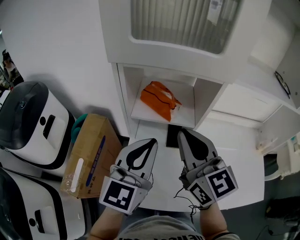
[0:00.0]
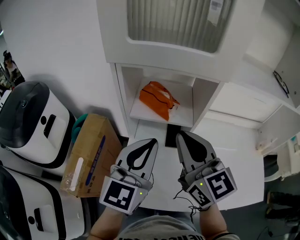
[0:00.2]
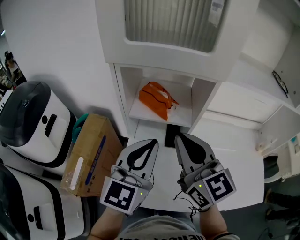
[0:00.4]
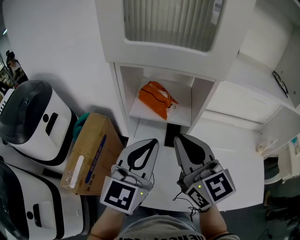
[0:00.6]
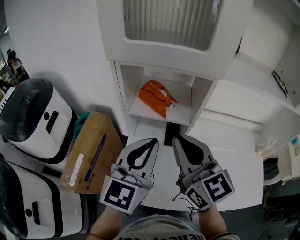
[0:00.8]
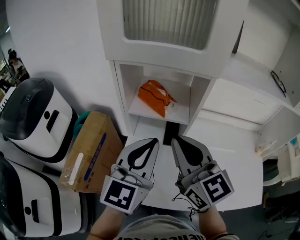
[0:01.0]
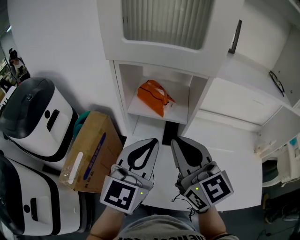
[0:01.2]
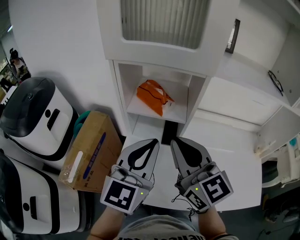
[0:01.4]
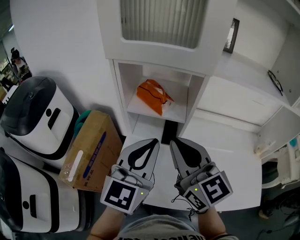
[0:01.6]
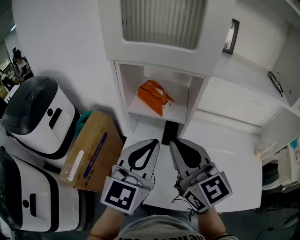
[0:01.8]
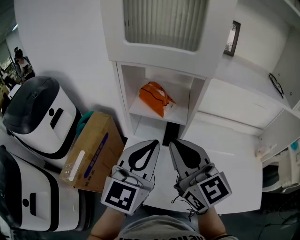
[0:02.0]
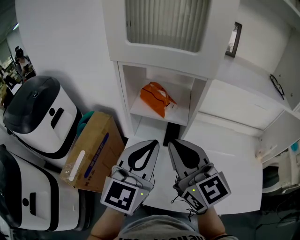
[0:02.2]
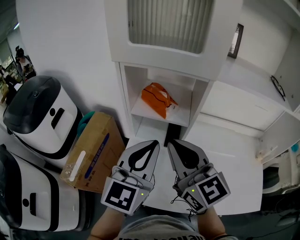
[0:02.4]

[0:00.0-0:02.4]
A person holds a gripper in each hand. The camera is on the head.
0:00.0 to 0:01.2: The left gripper moves some 5 cm. Meanwhile the right gripper ends up some 5 cm from where it was.
0:01.2 to 0:02.4: There are only small adjustments of the grippers.

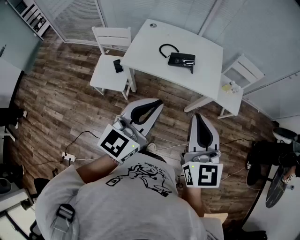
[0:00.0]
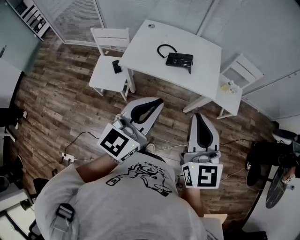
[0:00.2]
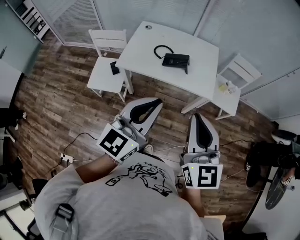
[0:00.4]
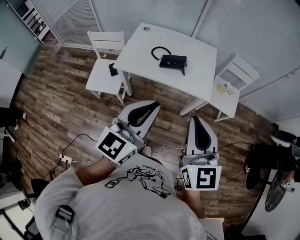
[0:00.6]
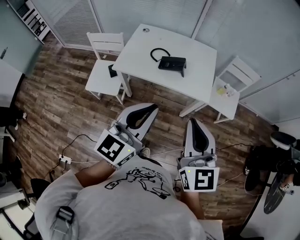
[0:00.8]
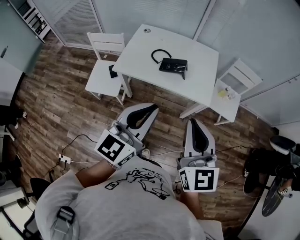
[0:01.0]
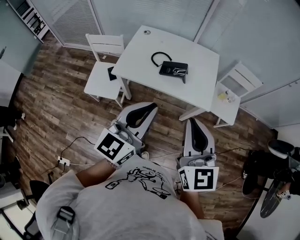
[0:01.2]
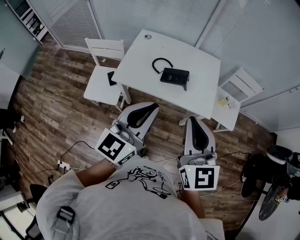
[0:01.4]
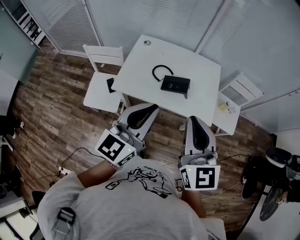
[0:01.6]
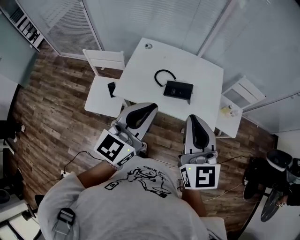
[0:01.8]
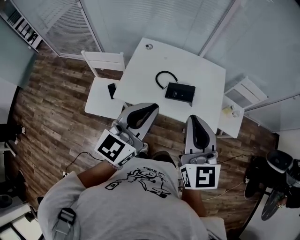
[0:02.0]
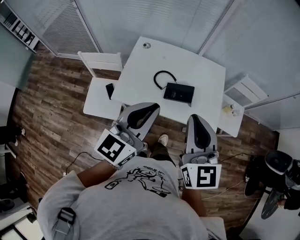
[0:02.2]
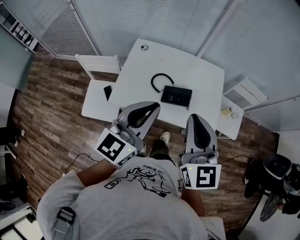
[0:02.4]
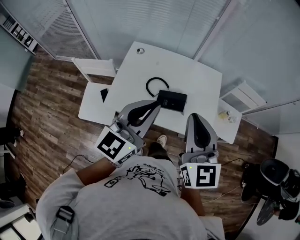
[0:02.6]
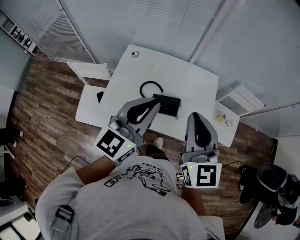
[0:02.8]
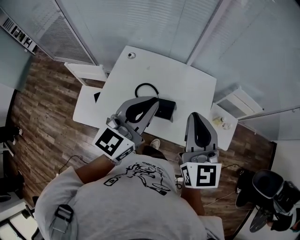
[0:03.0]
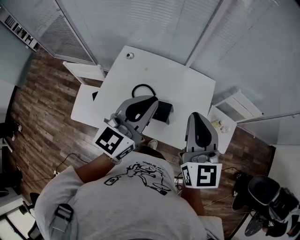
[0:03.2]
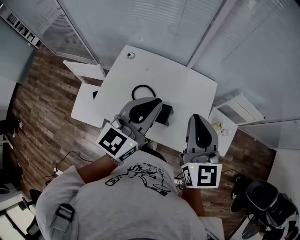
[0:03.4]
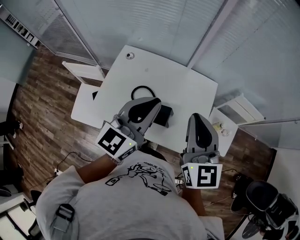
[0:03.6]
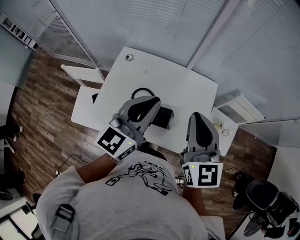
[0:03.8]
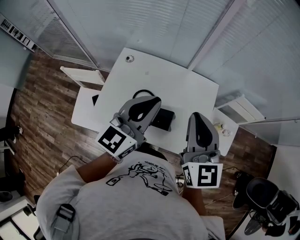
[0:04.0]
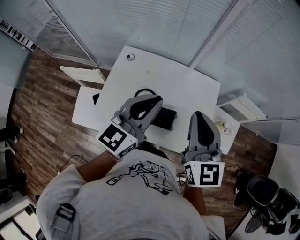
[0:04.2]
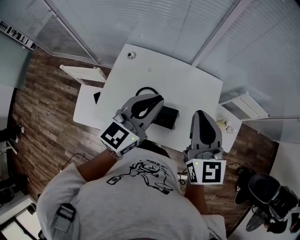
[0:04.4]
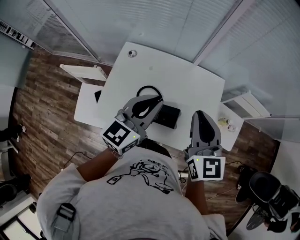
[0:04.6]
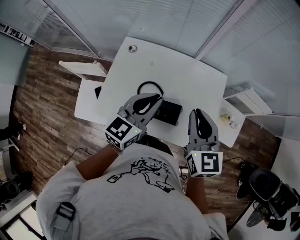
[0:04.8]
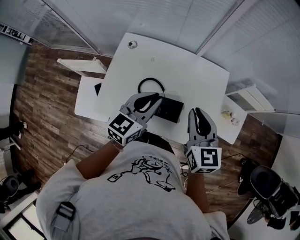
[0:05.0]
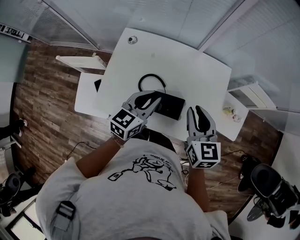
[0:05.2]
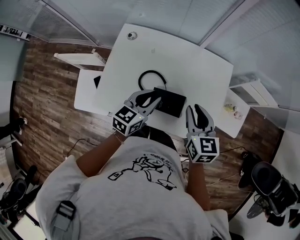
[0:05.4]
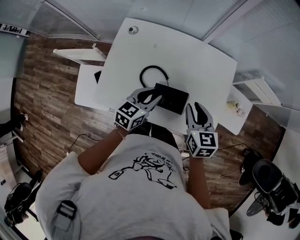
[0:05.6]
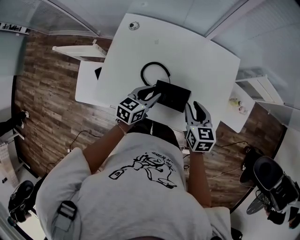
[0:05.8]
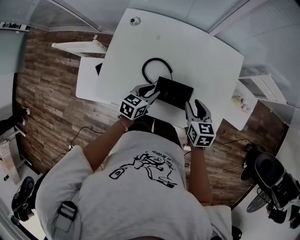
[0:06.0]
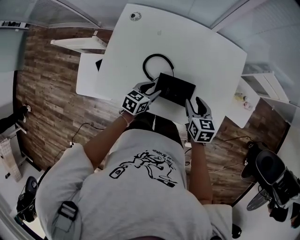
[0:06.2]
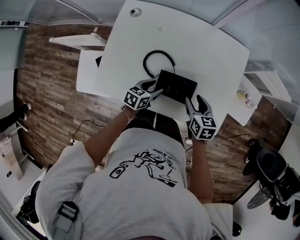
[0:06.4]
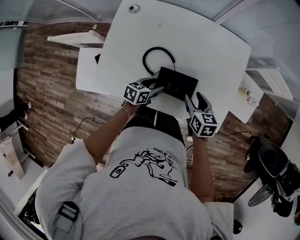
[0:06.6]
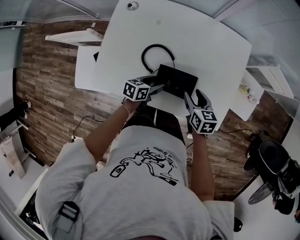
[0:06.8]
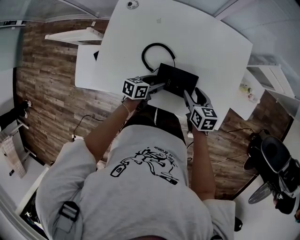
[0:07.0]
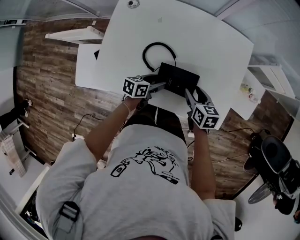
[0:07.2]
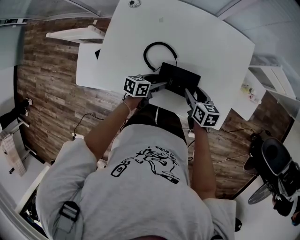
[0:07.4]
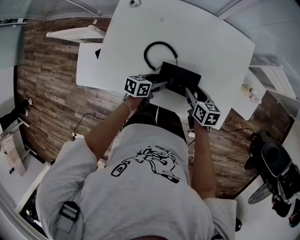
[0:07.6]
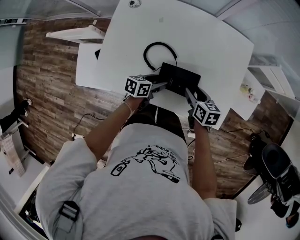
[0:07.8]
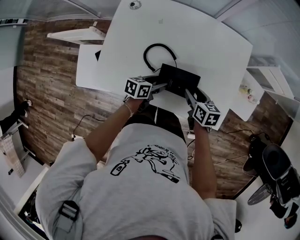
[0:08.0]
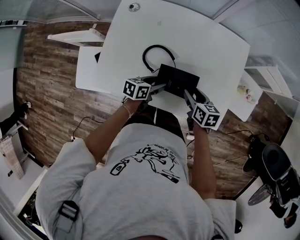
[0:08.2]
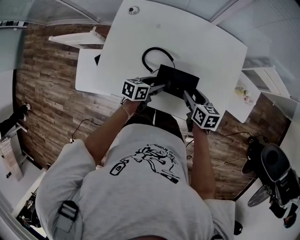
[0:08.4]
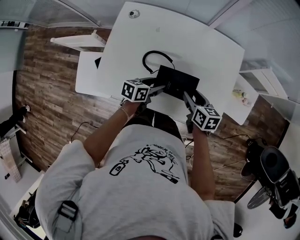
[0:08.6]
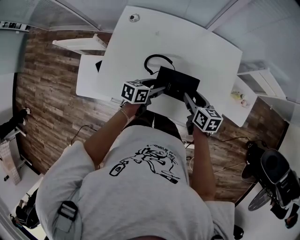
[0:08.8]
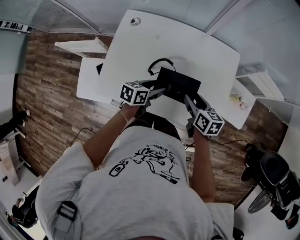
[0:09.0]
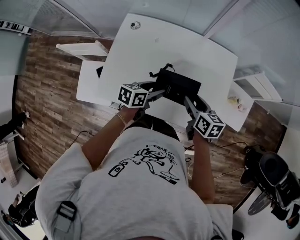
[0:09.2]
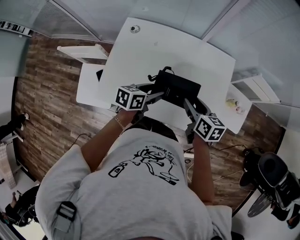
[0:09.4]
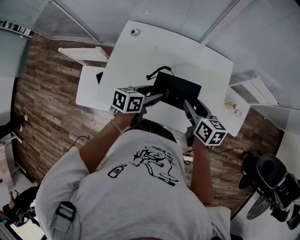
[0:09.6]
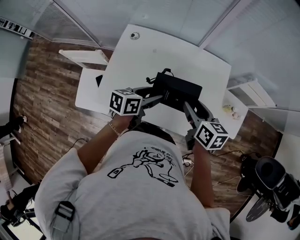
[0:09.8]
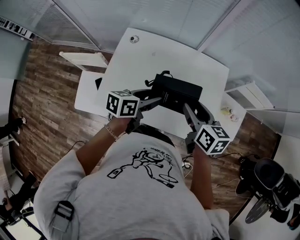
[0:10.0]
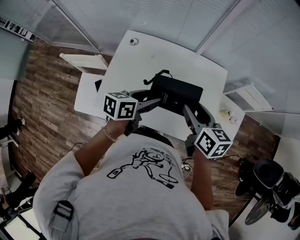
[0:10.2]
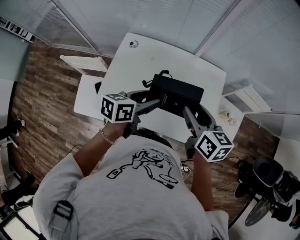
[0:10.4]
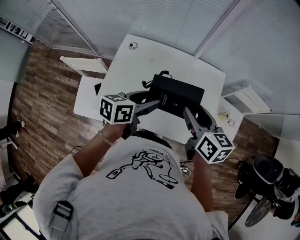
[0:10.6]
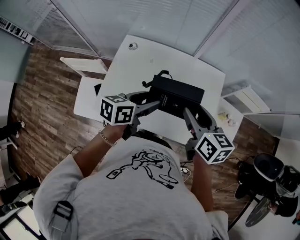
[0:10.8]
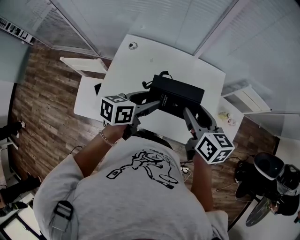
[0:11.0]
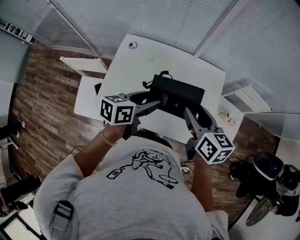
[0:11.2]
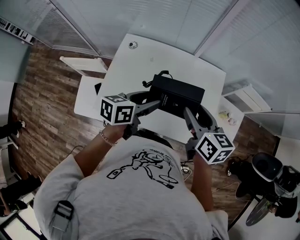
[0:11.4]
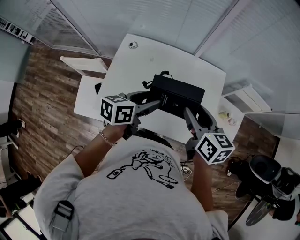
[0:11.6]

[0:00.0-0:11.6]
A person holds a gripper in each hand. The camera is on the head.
0:00.0 to 0:01.4: The two grippers go roughly 10 cm forward.
0:01.4 to 0:02.8: The two grippers go about 25 cm forward.
0:02.8 to 0:04.4: The two grippers go some 15 cm forward.
0:04.4 to 0:05.8: The grippers both shift downward by approximately 30 cm. The left gripper changes its angle by roughly 30 degrees, and opens its fingers. The right gripper tips its fingers downward by about 30 degrees.
0:05.8 to 0:07.2: Both grippers move downward, approximately 15 cm. The left gripper changes its angle by about 30 degrees, and opens its fingers; the right gripper opens up.
0:07.2 to 0:08.8: Both grippers travel together upward, roughly 5 cm.
0:08.8 to 0:10.2: Both grippers travel together upward, roughly 20 cm.
0:10.2 to 0:11.6: There are only small adjustments of the grippers.

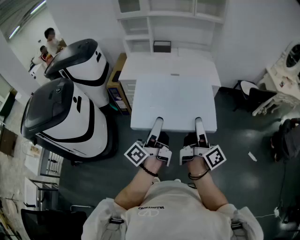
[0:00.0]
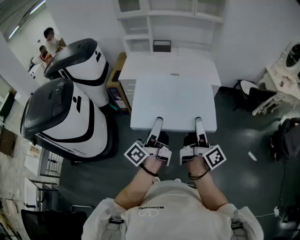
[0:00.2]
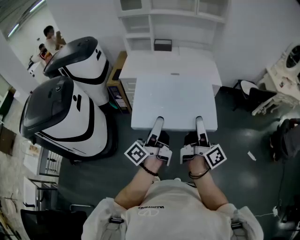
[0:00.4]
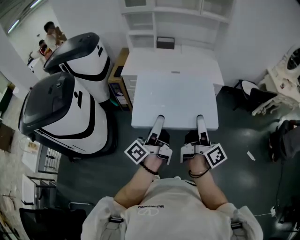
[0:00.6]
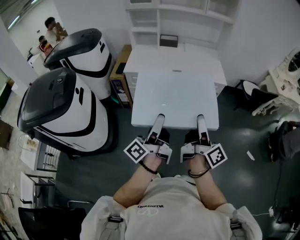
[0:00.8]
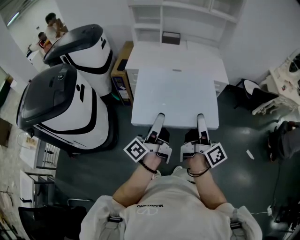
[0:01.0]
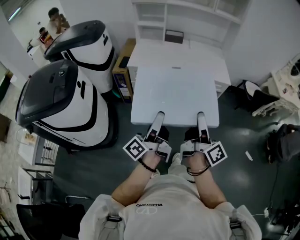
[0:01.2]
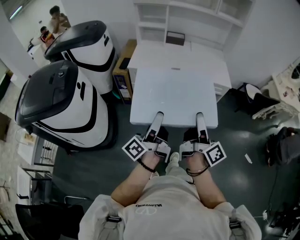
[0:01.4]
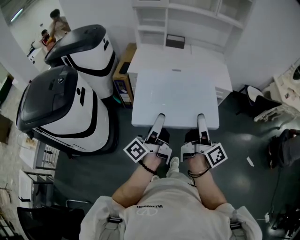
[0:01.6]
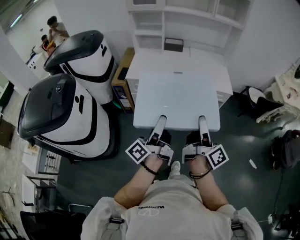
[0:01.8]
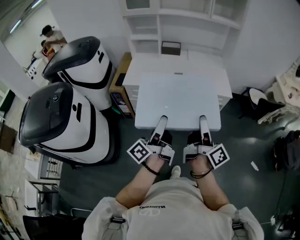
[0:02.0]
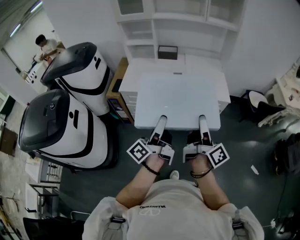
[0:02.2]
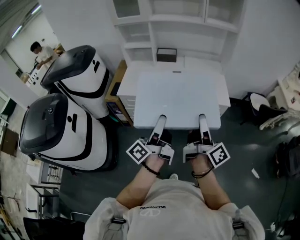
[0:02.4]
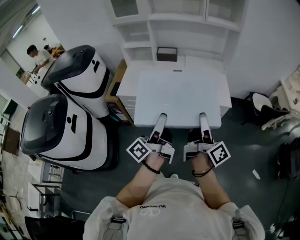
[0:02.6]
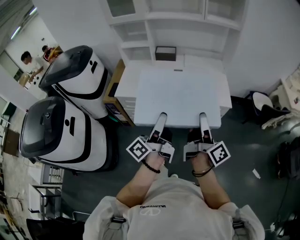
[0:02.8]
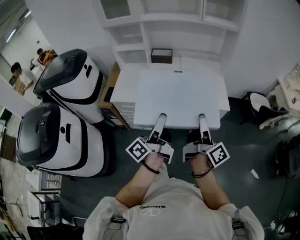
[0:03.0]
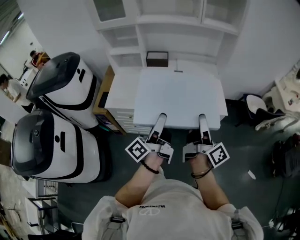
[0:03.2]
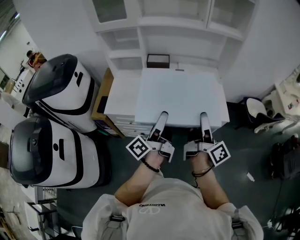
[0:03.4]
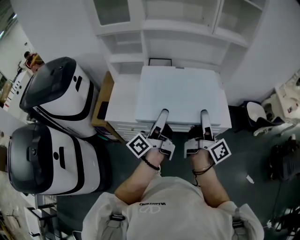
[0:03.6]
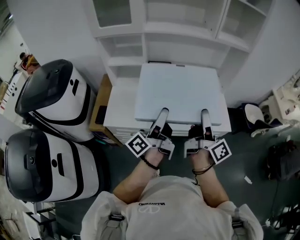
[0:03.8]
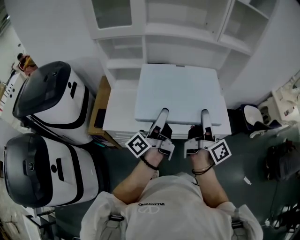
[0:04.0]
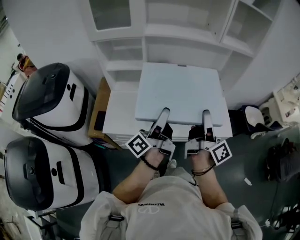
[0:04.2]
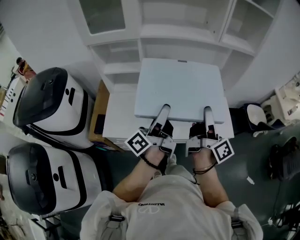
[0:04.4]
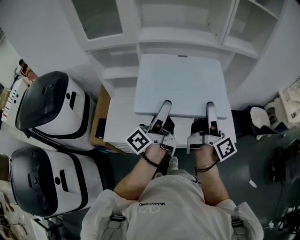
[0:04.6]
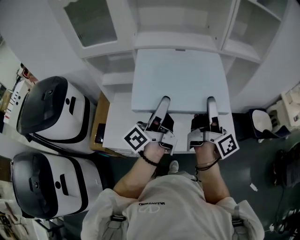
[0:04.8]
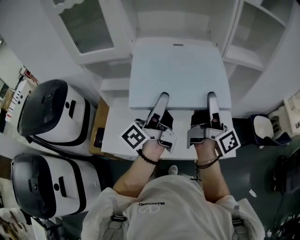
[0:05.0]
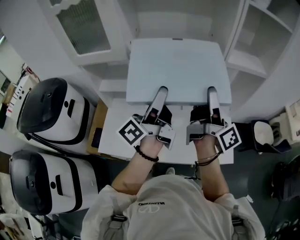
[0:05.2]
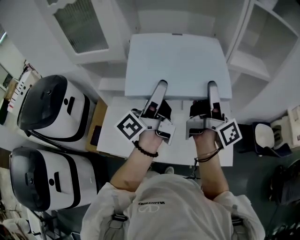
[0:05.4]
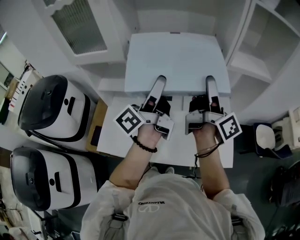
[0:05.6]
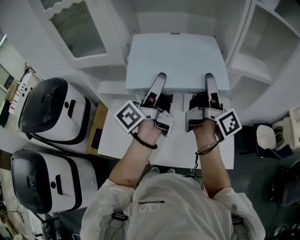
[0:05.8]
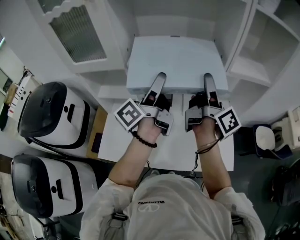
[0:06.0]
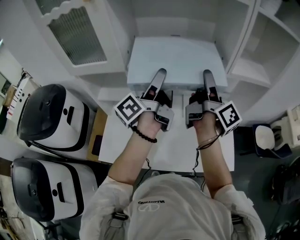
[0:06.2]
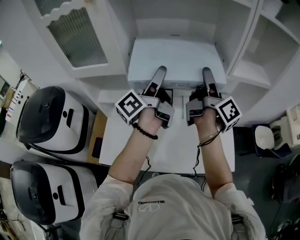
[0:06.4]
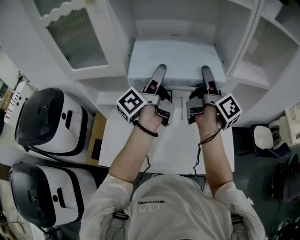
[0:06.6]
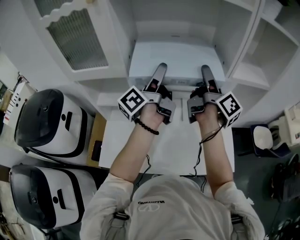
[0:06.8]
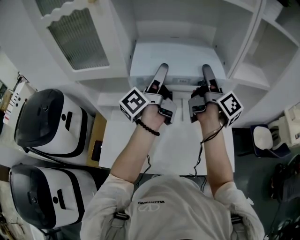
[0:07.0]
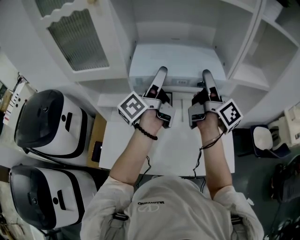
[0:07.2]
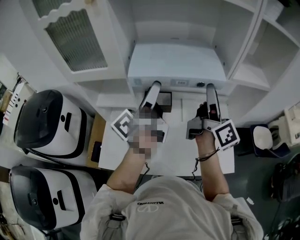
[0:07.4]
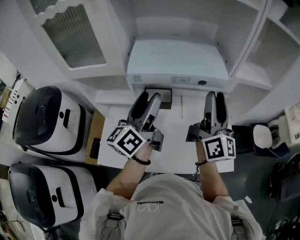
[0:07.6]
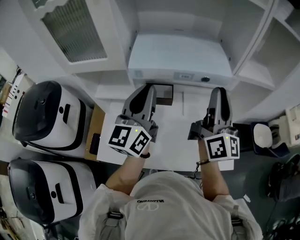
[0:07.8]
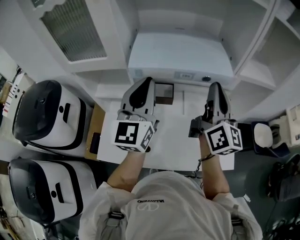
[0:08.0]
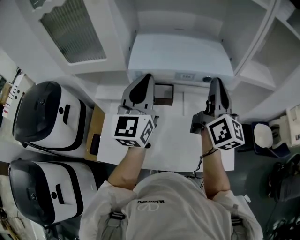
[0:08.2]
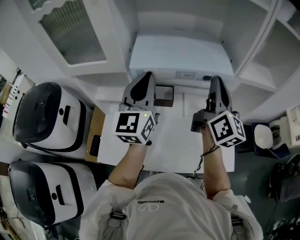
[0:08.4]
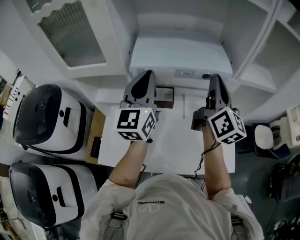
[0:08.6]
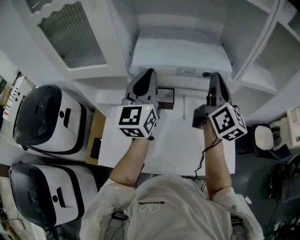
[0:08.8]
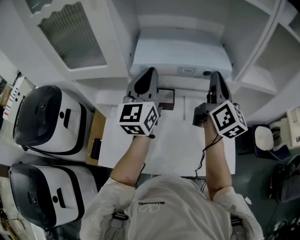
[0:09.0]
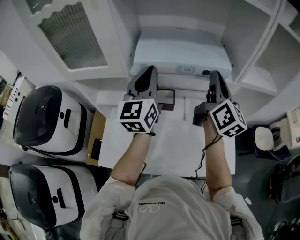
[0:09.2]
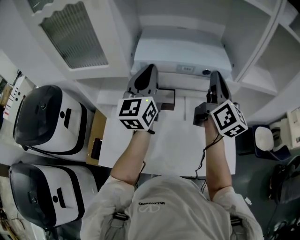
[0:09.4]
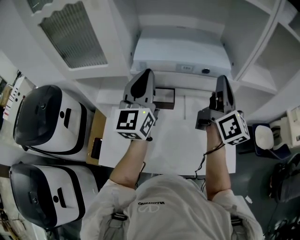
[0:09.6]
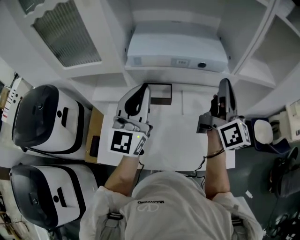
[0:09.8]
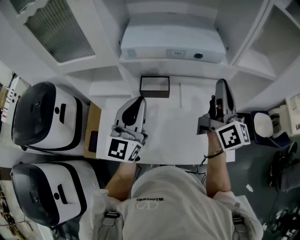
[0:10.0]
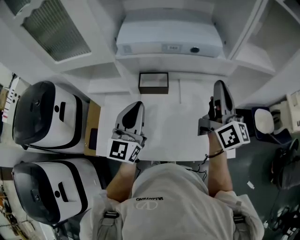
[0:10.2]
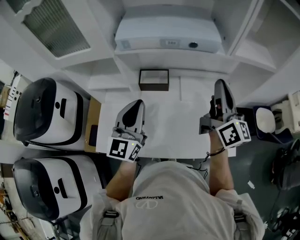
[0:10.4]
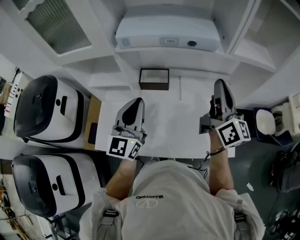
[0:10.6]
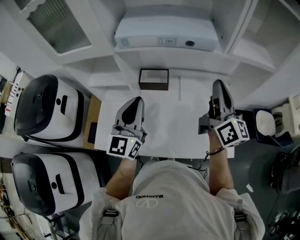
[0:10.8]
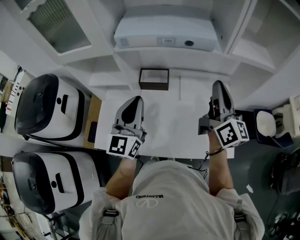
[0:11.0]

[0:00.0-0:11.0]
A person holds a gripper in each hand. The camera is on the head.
0:00.0 to 0:01.6: The left gripper moves to the left, some 10 cm. Meanwhile the right gripper heads to the left and forward, covering approximately 10 cm.
0:01.6 to 0:03.2: The grippers both shift forward by roughly 30 cm.
0:03.2 to 0:04.8: The two grippers go roughly 30 cm forward.
0:04.8 to 0:06.2: The grippers both shift forward by some 20 cm.
0:06.2 to 0:07.8: Both grippers travel together backward, roughly 5 cm. The right gripper rotates around the line of its fingers by some 50 degrees, counterclockwise from behind, and closes its fingers, while the left gripper rotates around the line of its fingers by approximately 60 degrees, clockwise from behind, and closes.
0:07.8 to 0:09.4: The two grippers go some 10 cm forward.
0:09.4 to 0:11.0: The right gripper heads backward, to the right and downward, covering roughly 15 cm. Meanwhile the left gripper heads backward and downward, covering approximately 20 cm.
